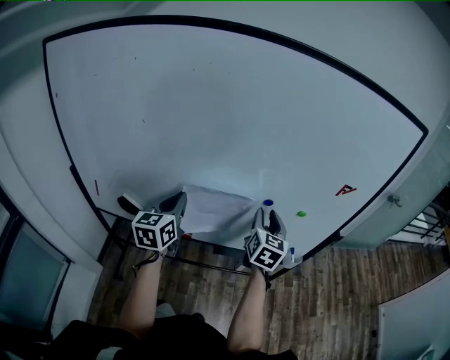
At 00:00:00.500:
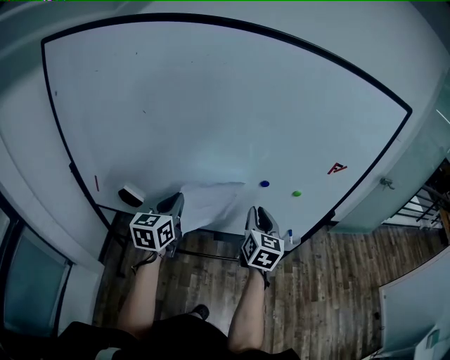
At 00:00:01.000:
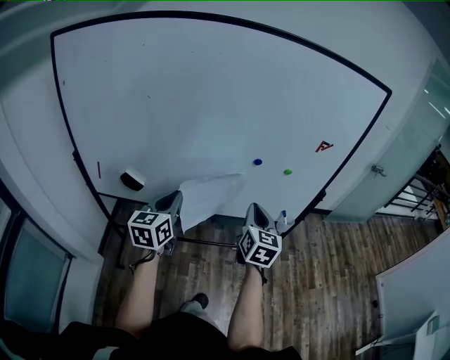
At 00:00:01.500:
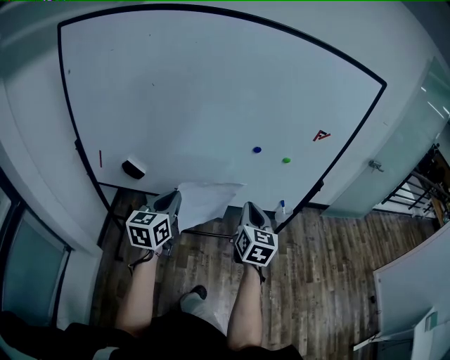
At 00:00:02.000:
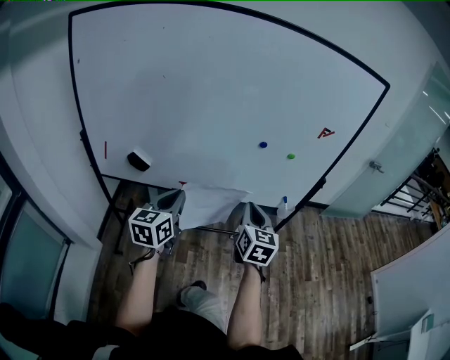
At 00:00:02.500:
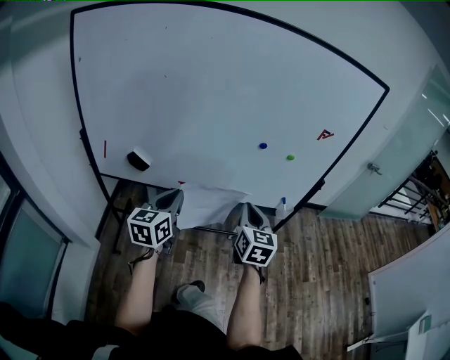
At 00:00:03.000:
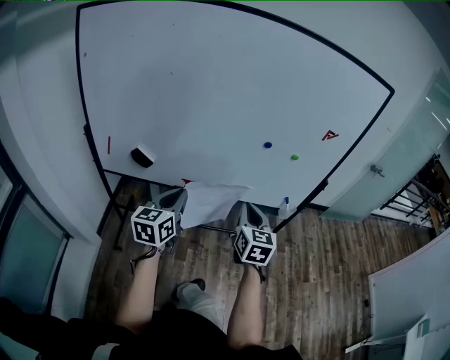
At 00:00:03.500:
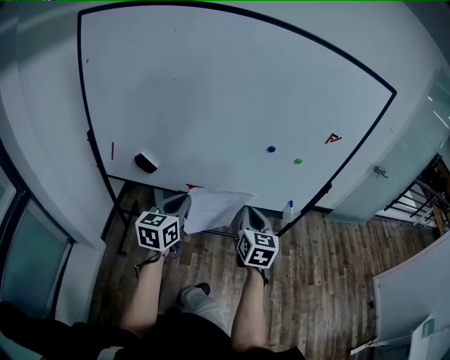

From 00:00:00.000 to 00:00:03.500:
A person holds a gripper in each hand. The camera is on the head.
From 00:00:00.000 to 00:00:02.000: Both grippers move backward, some 20 cm. The right gripper closes its fingers.
From 00:00:02.000 to 00:00:03.500: The grippers stay close to where they were, moving slightly.

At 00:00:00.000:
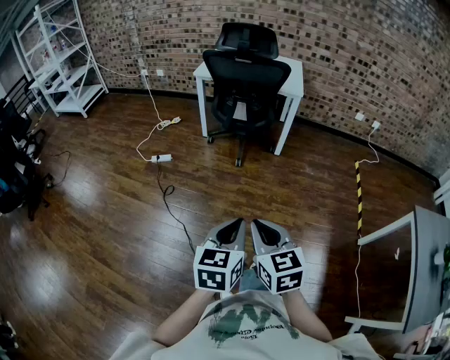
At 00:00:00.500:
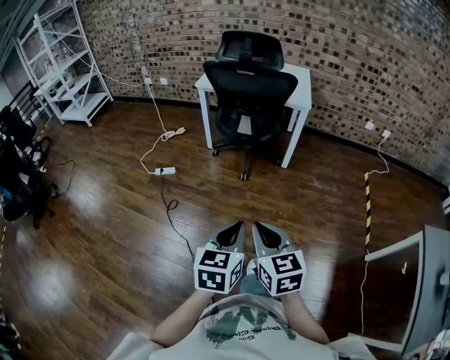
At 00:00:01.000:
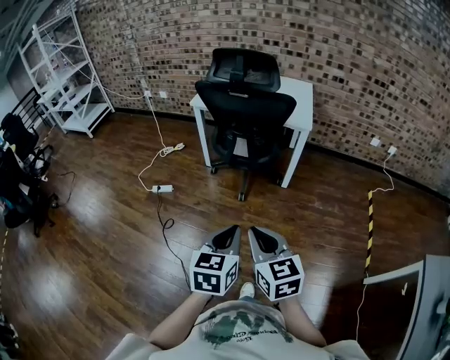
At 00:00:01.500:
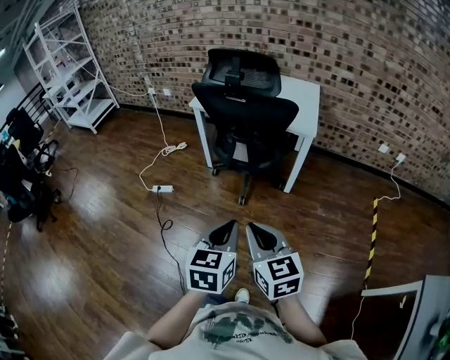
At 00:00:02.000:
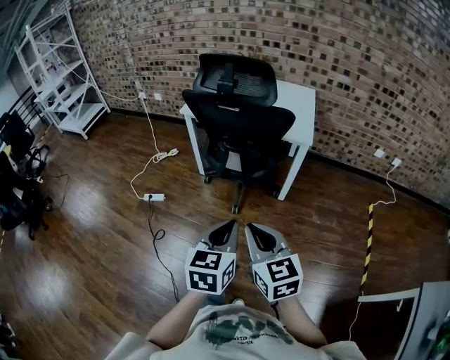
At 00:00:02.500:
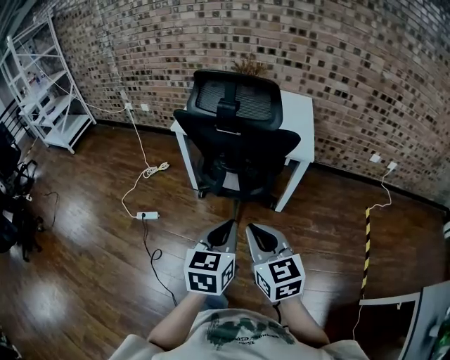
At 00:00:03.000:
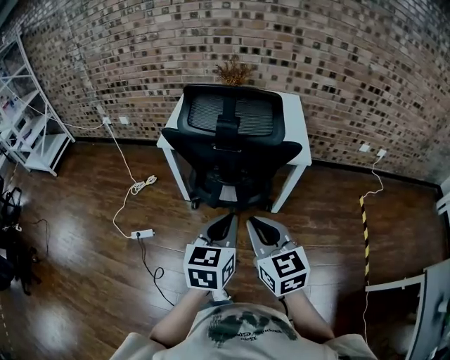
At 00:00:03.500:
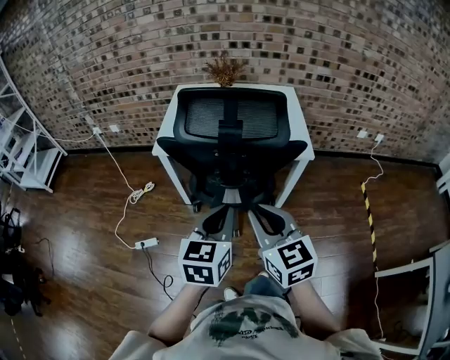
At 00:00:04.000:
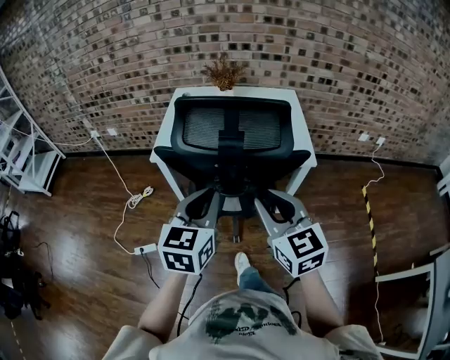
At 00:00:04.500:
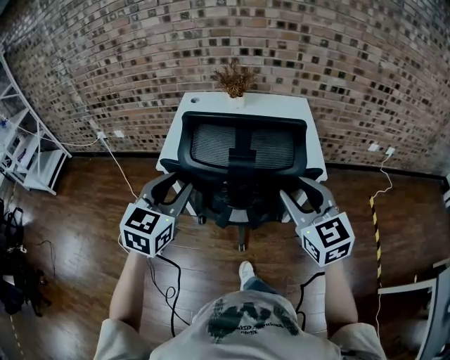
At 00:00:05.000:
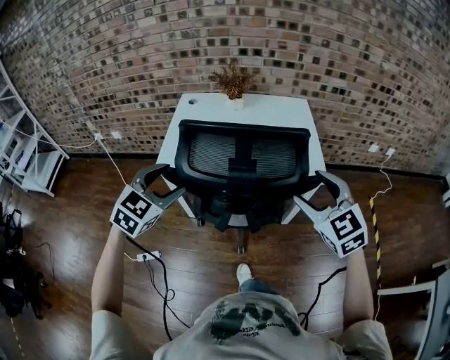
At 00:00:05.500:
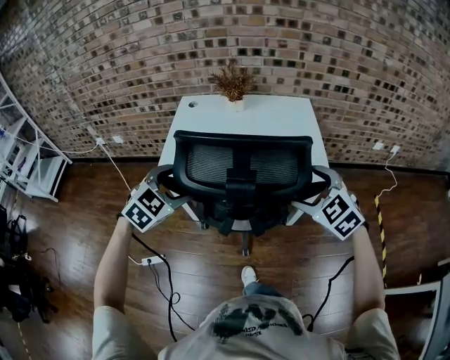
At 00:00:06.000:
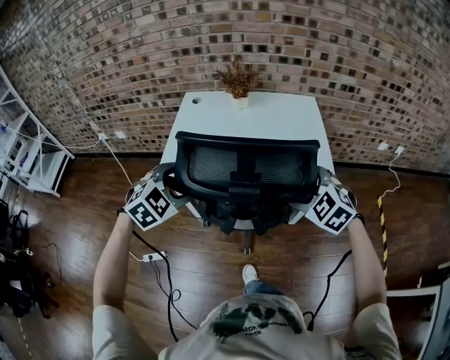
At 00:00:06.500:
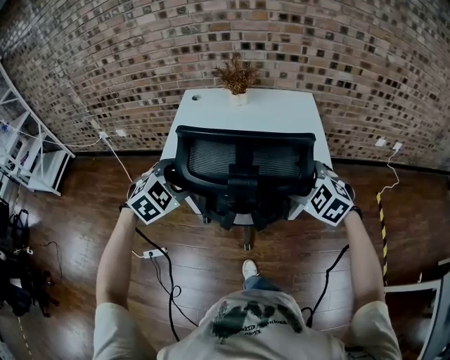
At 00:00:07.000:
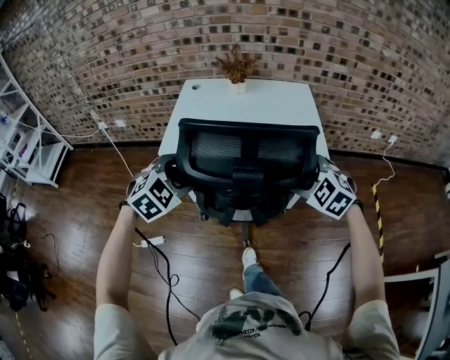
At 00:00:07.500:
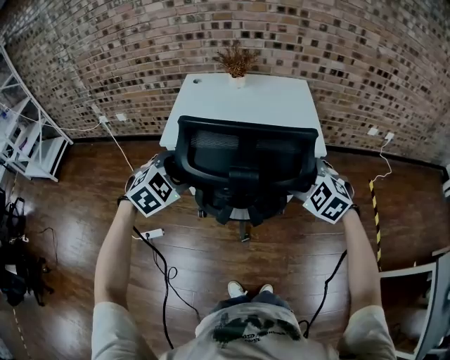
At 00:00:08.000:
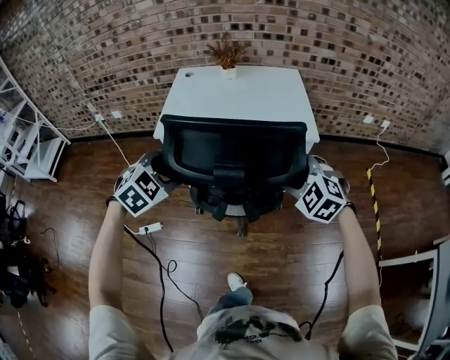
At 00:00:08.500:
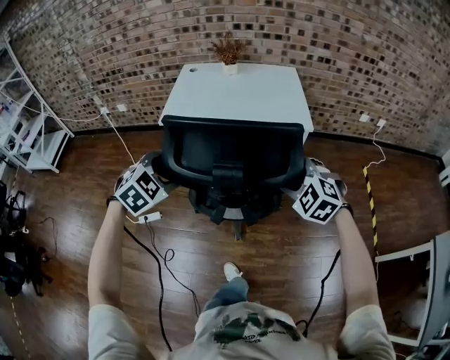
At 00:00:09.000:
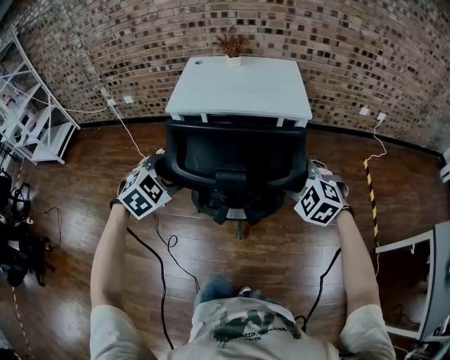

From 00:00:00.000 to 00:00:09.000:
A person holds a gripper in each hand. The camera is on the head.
From 00:00:00.000 to 00:00:02.000: The two grippers go about 35 cm forward.
From 00:00:02.000 to 00:00:04.500: The right gripper shifts about 40 cm forward, swivels about 20 degrees, and opens up. The left gripper heads forward and to the left, covering approximately 50 cm, and turns by approximately 30 degrees.
From 00:00:04.500 to 00:00:07.000: Both grippers travel together downward, approximately 10 cm. The left gripper reaches some 10 cm forward, then returns, rotates roughly 40 degrees, and opens up. Meanwhile the right gripper tips its fingers downward by about 30 degrees, and opens its fingers.
From 00:00:07.000 to 00:00:09.000: The grippers both shift backward by roughly 30 cm.

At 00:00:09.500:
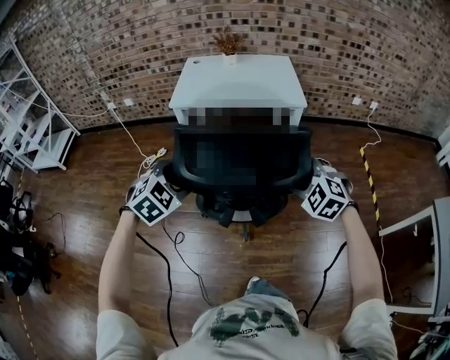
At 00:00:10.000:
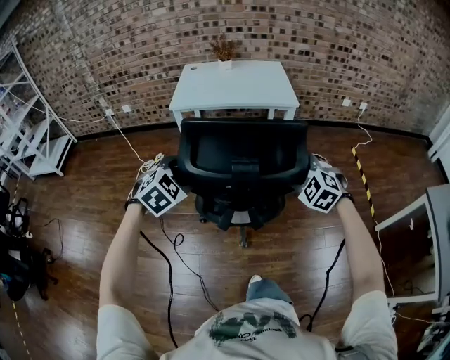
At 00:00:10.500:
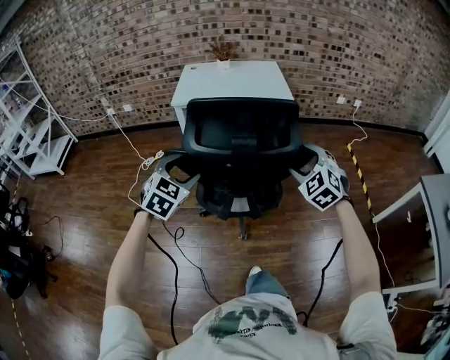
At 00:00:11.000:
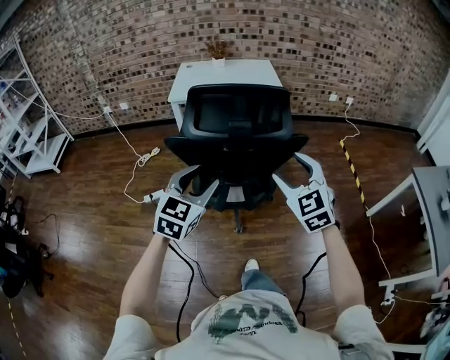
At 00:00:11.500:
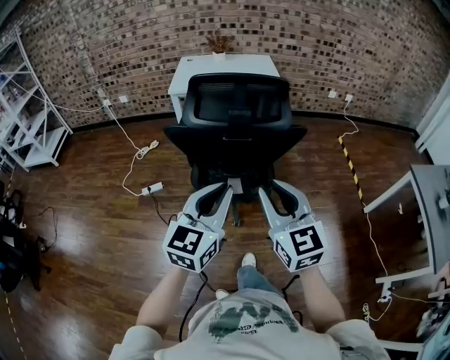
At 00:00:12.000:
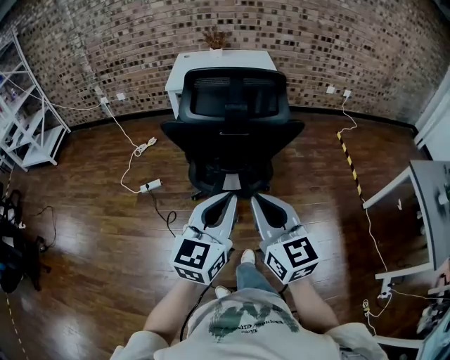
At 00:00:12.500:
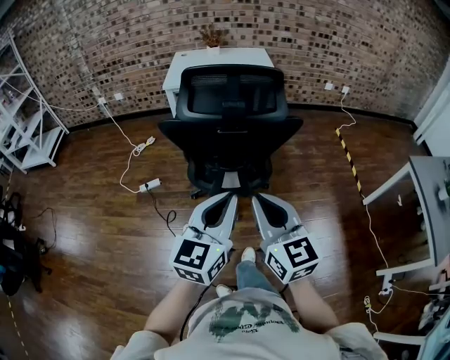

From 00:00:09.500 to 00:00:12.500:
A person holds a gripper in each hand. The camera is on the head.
From 00:00:09.500 to 00:00:11.000: The right gripper is displaced backward and upward by about 25 cm, and changes its angle by about 40 degrees. Meanwhile the left gripper shifts approximately 20 cm backward, and rotates some 40 degrees.
From 00:00:11.000 to 00:00:12.500: The right gripper heads backward and to the left, covering approximately 15 cm, changes its angle by roughly 40 degrees, and closes its fingers; the left gripper heads backward and to the right, covering some 15 cm, turns by roughly 20 degrees, and closes up.

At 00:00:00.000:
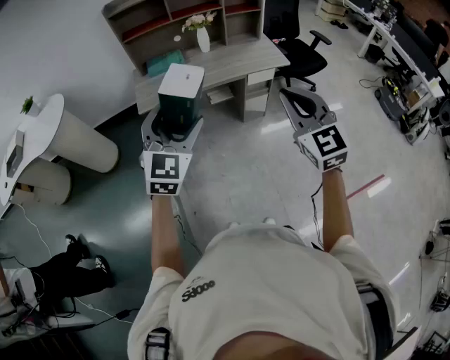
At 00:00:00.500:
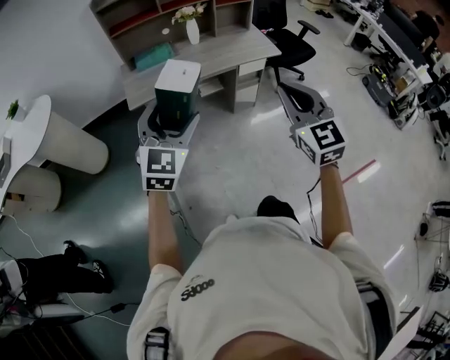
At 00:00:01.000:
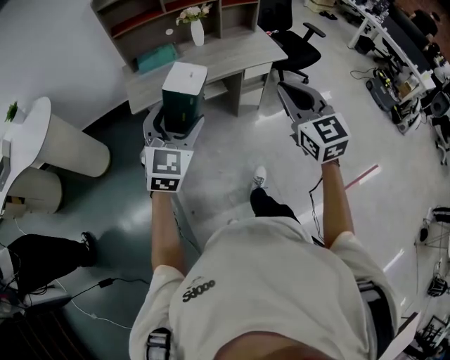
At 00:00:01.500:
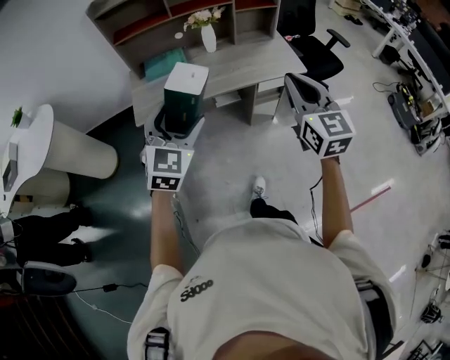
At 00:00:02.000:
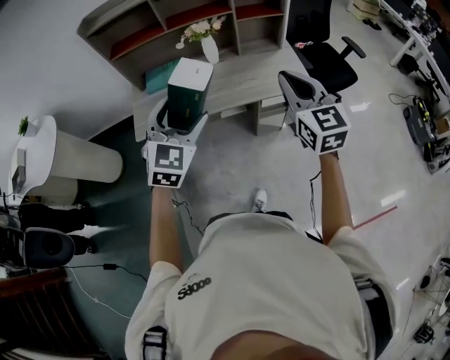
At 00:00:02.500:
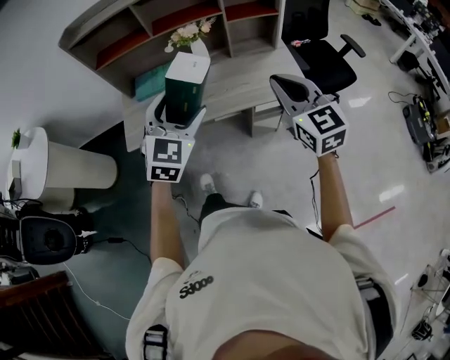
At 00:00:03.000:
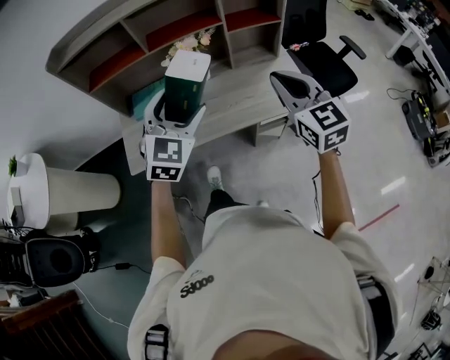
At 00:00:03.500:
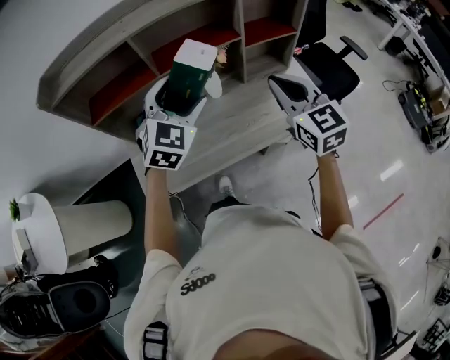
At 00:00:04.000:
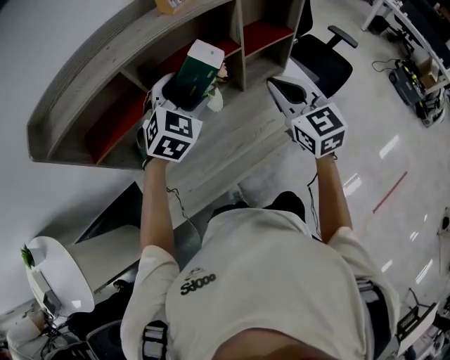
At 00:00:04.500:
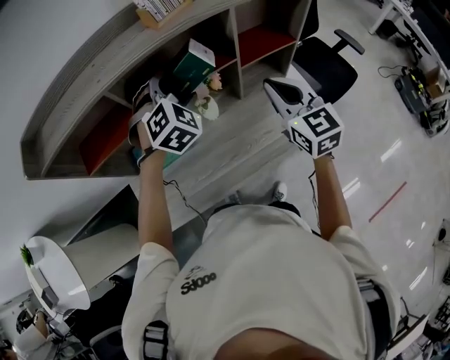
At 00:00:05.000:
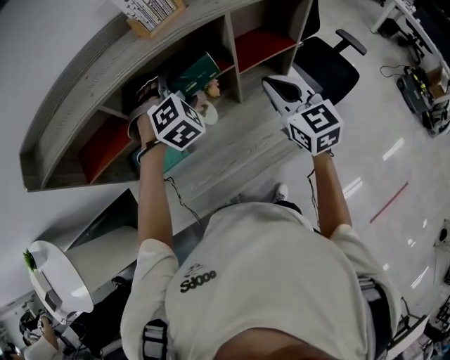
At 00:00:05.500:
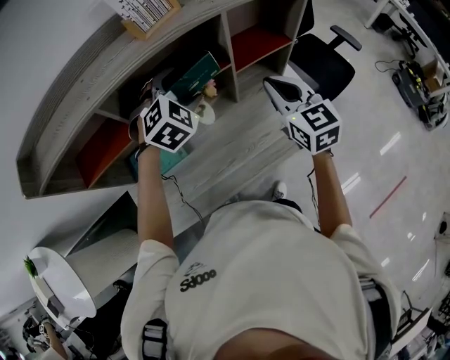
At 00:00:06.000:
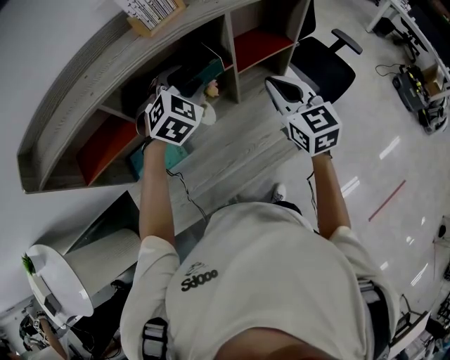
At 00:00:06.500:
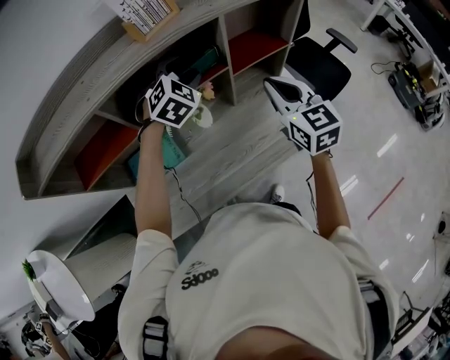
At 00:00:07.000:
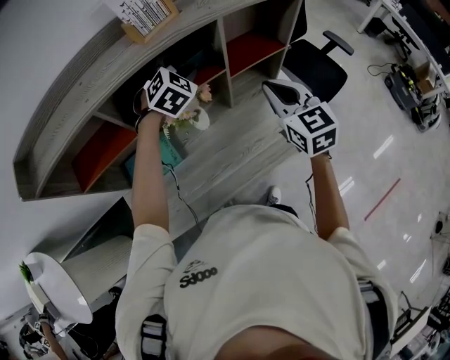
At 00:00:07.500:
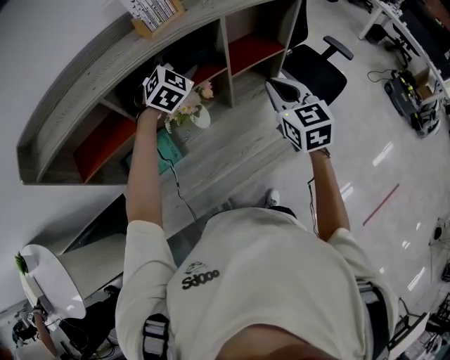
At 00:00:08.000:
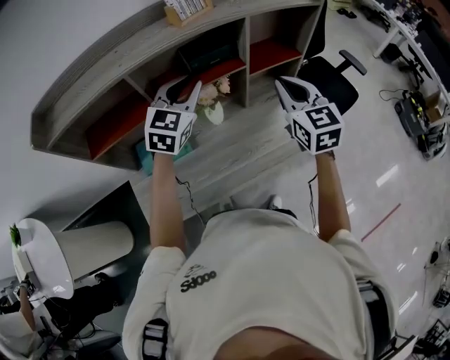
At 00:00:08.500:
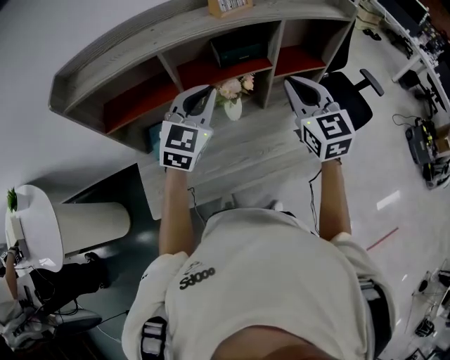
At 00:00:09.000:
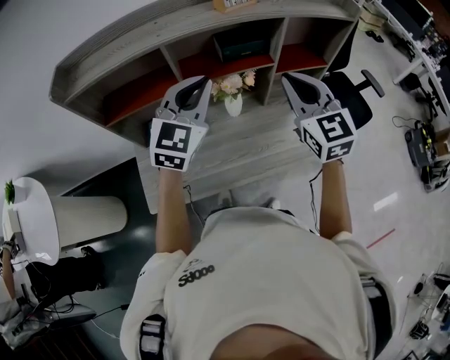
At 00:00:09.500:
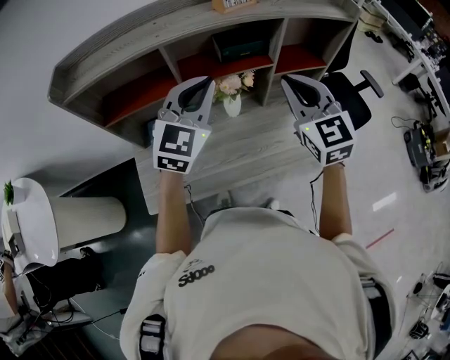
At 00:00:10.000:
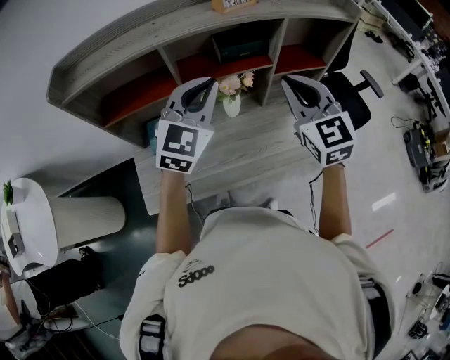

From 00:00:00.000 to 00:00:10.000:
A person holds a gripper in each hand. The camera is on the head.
From 00:00:00.000 to 00:00:02.000: The two grippers go roughly 35 cm forward.
From 00:00:02.000 to 00:00:04.000: Both grippers travel together forward, approximately 40 cm. The left gripper turns by about 30 degrees.
From 00:00:04.000 to 00:00:06.000: The two grippers go some 10 cm forward and to the right.
From 00:00:06.000 to 00:00:08.000: The right gripper ends up some 5 cm from where it was; the left gripper moves backward and upward, approximately 10 cm, turns by roughly 30 degrees, and closes its fingers.
From 00:00:08.000 to 00:00:10.000: The left gripper shifts about 10 cm backward and upward. The right gripper moves to the left, roughly 5 cm.
